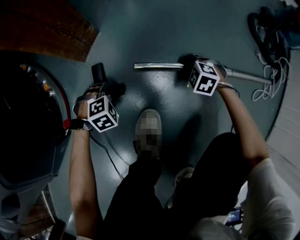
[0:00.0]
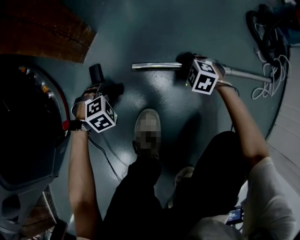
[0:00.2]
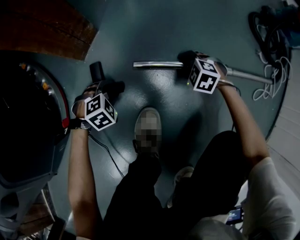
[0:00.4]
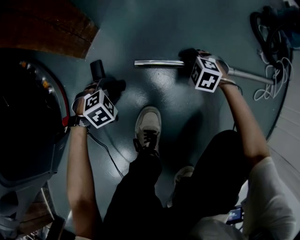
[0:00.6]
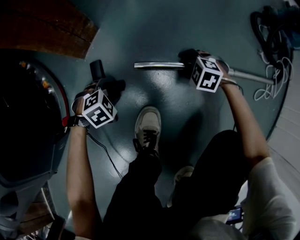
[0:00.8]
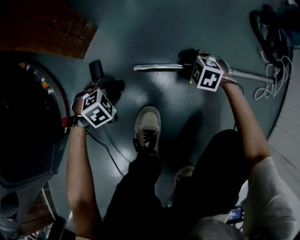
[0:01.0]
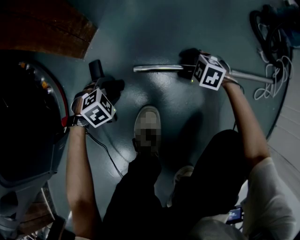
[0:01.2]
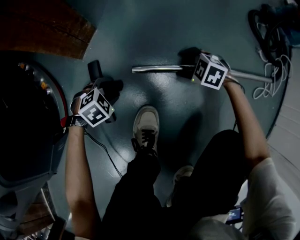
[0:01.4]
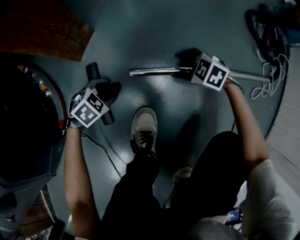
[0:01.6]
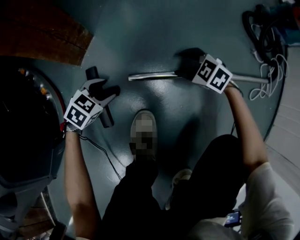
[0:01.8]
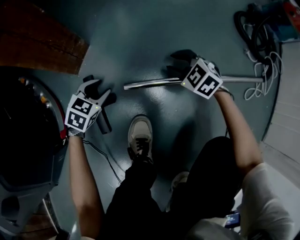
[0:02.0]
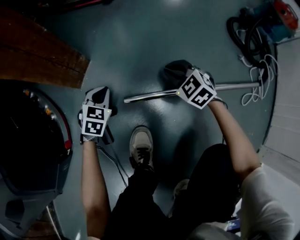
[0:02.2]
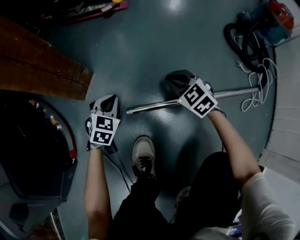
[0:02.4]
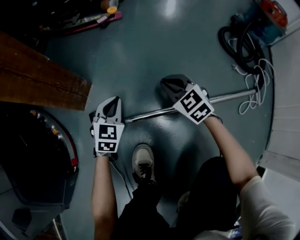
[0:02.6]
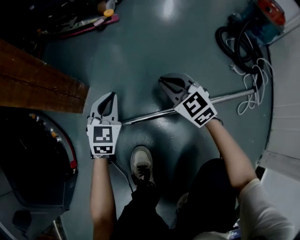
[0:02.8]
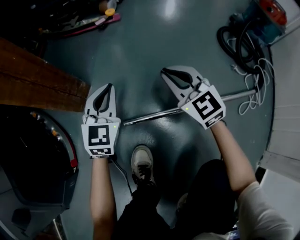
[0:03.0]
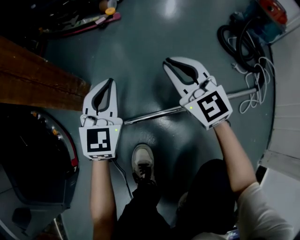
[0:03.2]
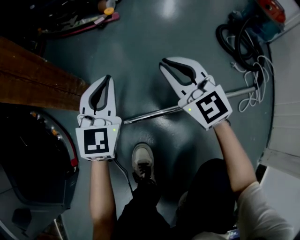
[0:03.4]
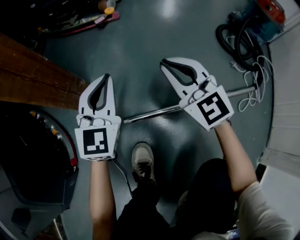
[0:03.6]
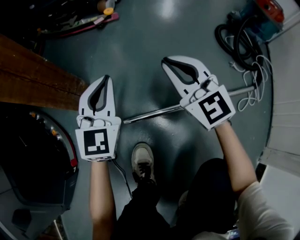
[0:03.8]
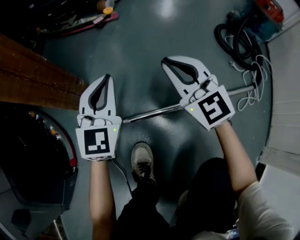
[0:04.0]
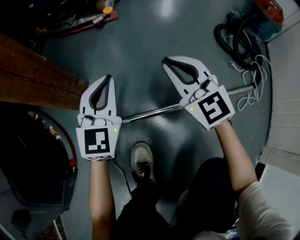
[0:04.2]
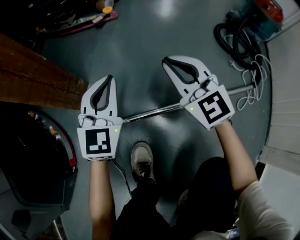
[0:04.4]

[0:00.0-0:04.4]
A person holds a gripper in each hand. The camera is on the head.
0:00.0 to 0:01.4: The right gripper opens up.
0:01.4 to 0:03.0: The two grippers go some 25 cm upward. The left gripper tilts its fingers about 50 degrees upward, and closes its fingers. Meanwhile the right gripper angles its fingers upward, by approximately 50 degrees, and closes up.
0:03.0 to 0:04.4: The grippers both shift upward by approximately 5 cm.

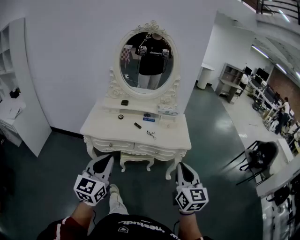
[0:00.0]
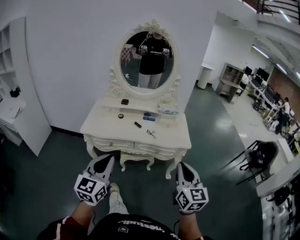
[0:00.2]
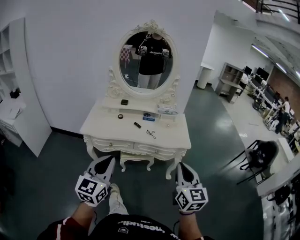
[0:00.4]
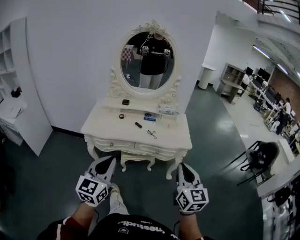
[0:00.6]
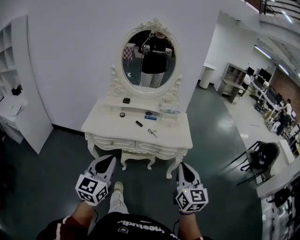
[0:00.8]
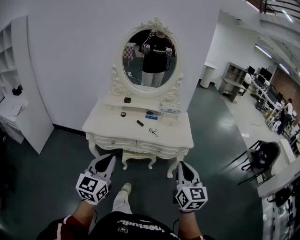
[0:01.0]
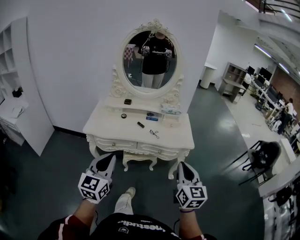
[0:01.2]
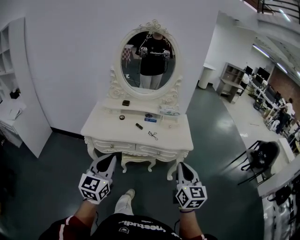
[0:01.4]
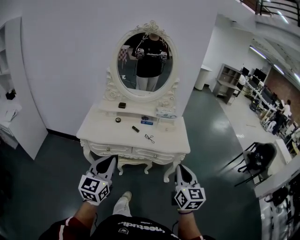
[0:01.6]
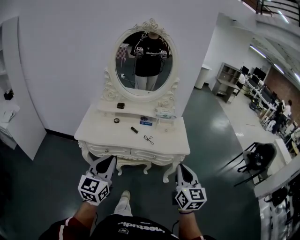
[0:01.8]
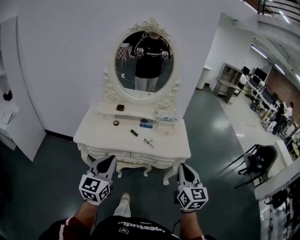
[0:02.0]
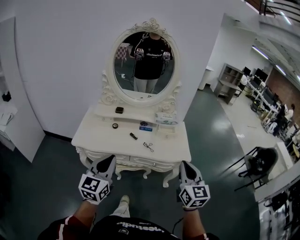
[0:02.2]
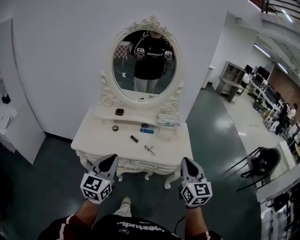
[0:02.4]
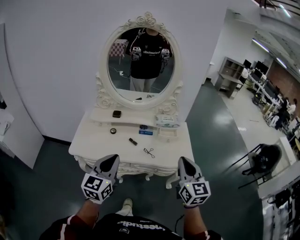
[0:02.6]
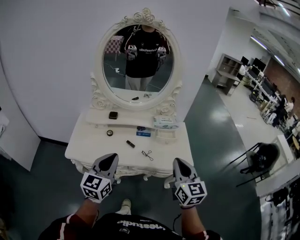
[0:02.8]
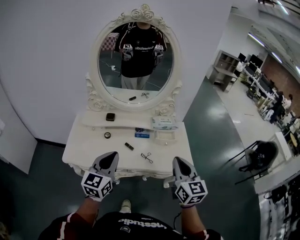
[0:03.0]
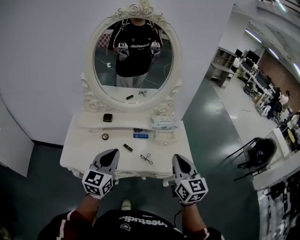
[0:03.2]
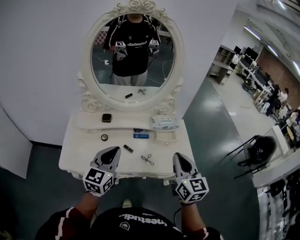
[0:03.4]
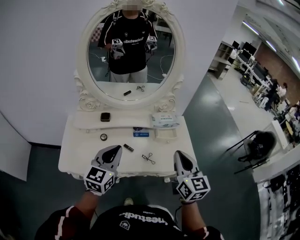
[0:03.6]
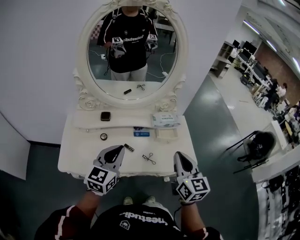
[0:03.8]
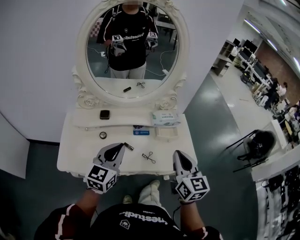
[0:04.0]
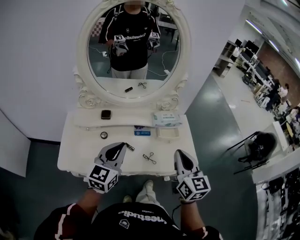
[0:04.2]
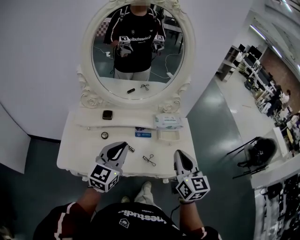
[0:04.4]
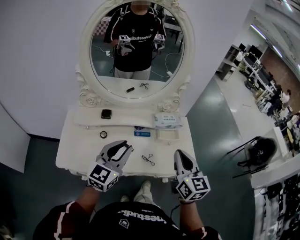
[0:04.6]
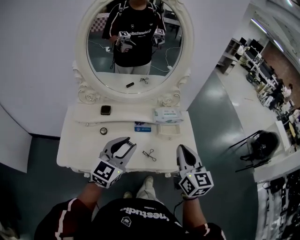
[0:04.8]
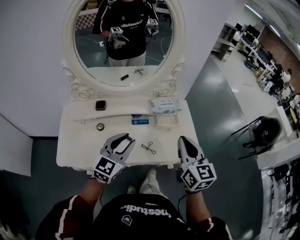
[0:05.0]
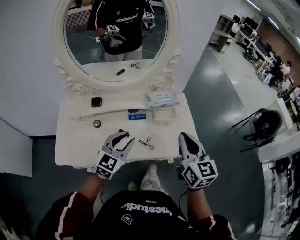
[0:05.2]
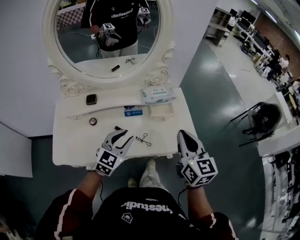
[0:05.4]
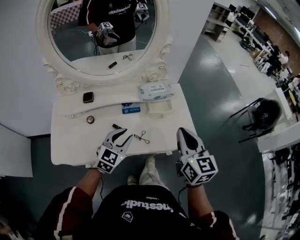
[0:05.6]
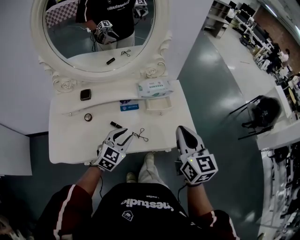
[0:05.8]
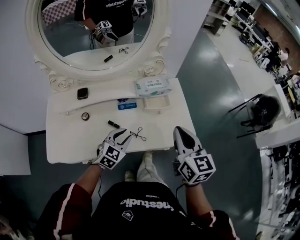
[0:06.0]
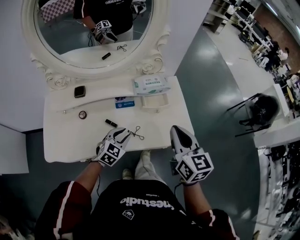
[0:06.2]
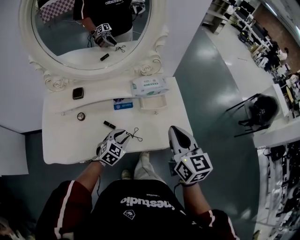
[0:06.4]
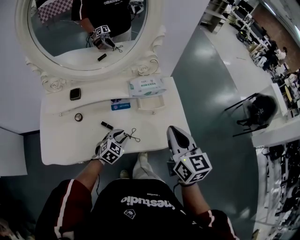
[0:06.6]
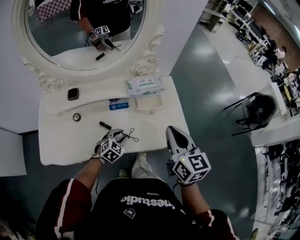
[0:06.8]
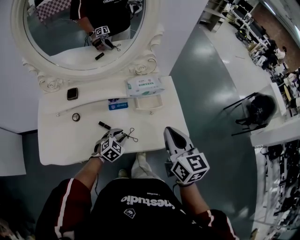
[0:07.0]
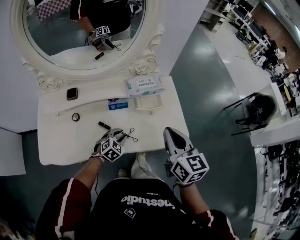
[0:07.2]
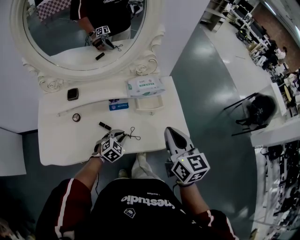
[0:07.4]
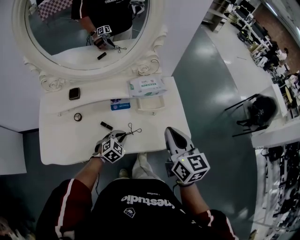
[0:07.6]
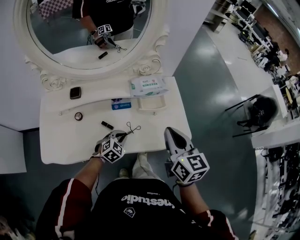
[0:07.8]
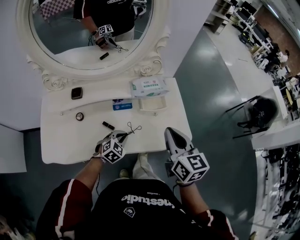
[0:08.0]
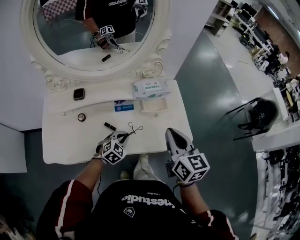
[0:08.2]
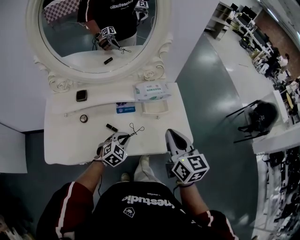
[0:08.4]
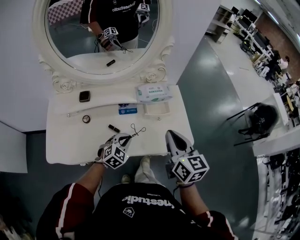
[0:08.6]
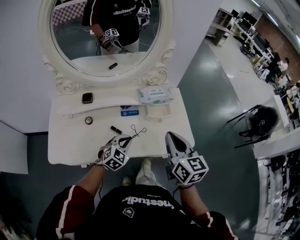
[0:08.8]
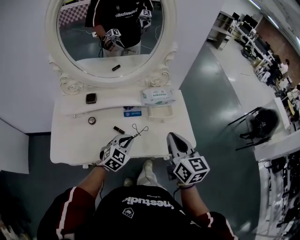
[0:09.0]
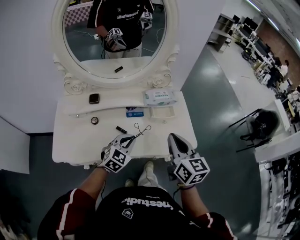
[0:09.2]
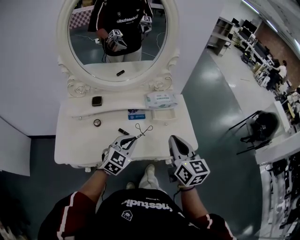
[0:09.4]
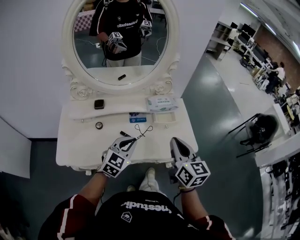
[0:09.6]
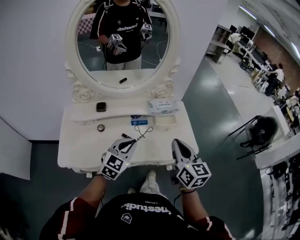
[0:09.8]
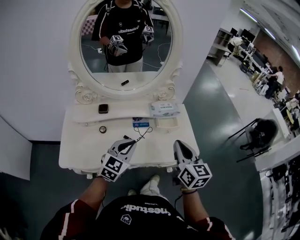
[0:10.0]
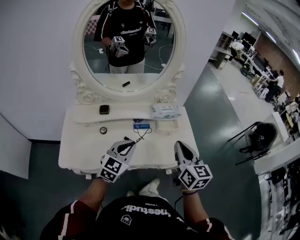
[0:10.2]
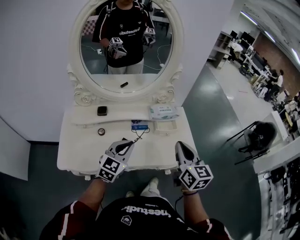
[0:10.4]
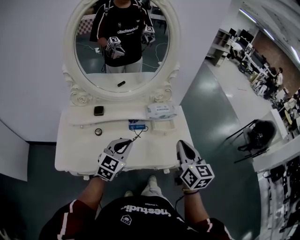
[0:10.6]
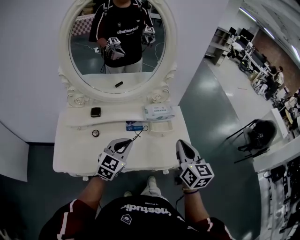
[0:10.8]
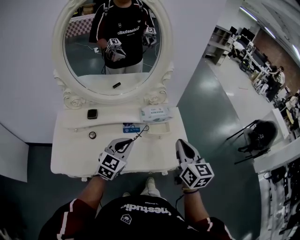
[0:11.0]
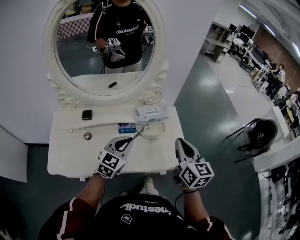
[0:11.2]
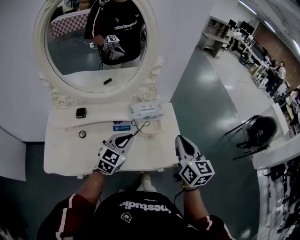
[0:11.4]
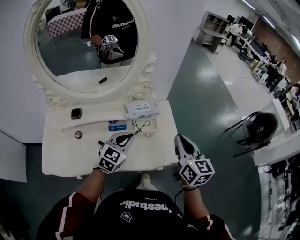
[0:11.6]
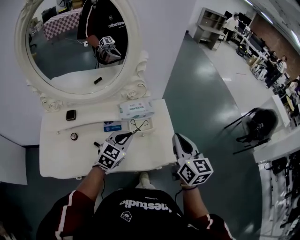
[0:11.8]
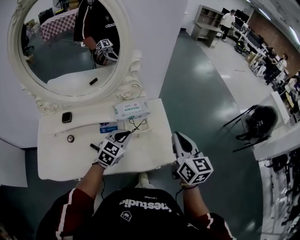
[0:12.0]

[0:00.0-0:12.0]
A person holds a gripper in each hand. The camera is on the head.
0:00.0 to 0:01.6: The right gripper shifts by about 5 cm; the left gripper shifts some 5 cm forward.
0:01.6 to 0:03.0: The grippers both shift forward by approximately 25 cm.
0:03.0 to 0:04.4: Both grippers travel together forward, some 10 cm.
0:04.4 to 0:06.0: The left gripper is displaced downward and to the right by roughly 25 cm, changes its angle by some 30 degrees, and opens its fingers. The right gripper moves to the right and downward, about 10 cm.
0:06.0 to 0:07.6: The left gripper moves downward, roughly 10 cm, and closes its fingers.
0:07.6 to 0:09.0: The left gripper goes about 10 cm upward.
0:09.0 to 0:10.4: The left gripper travels upward by about 15 cm.
0:10.4 to 0:12.0: The right gripper is displaced to the right and forward by approximately 20 cm; the left gripper moves forward, to the right and downward, about 25 cm.

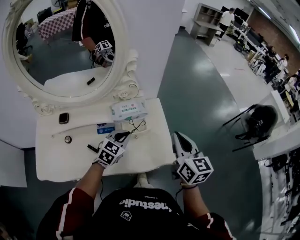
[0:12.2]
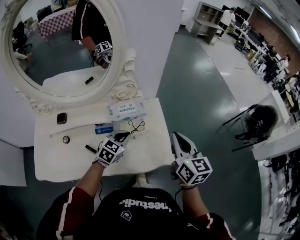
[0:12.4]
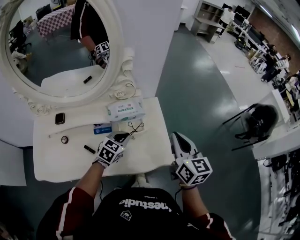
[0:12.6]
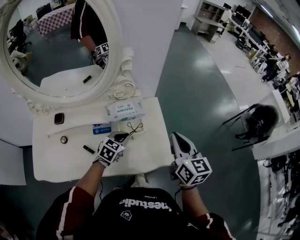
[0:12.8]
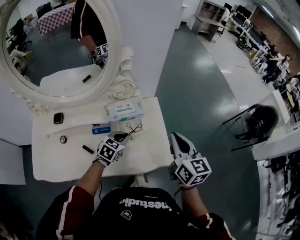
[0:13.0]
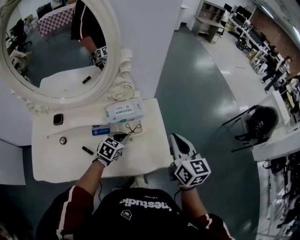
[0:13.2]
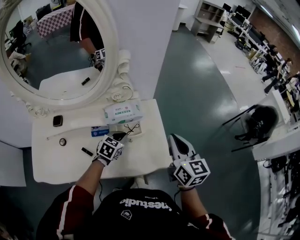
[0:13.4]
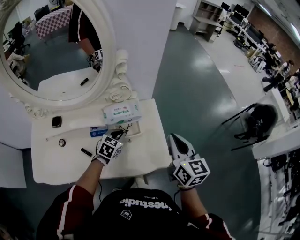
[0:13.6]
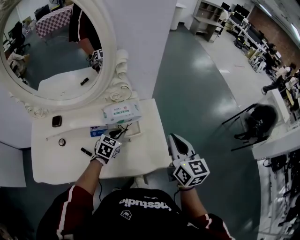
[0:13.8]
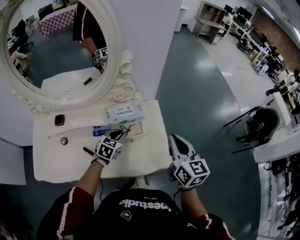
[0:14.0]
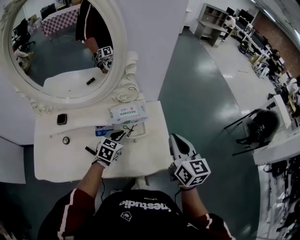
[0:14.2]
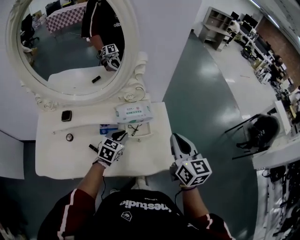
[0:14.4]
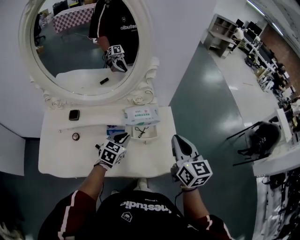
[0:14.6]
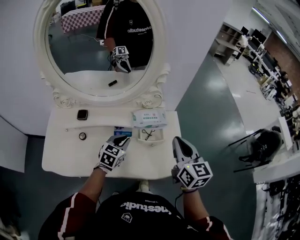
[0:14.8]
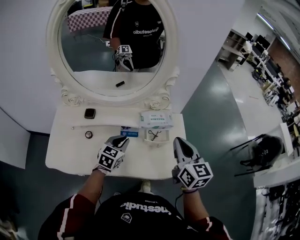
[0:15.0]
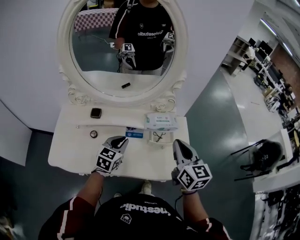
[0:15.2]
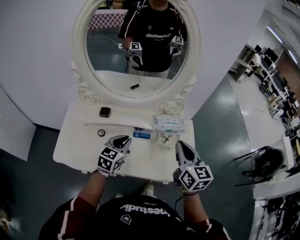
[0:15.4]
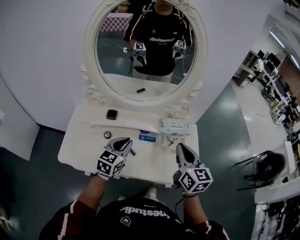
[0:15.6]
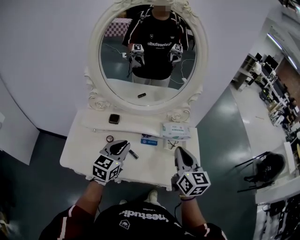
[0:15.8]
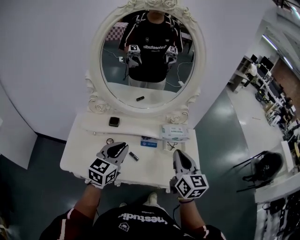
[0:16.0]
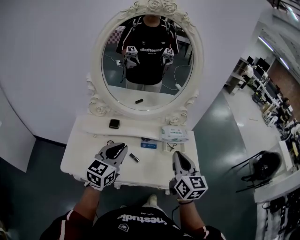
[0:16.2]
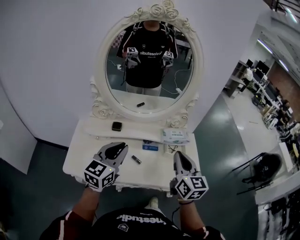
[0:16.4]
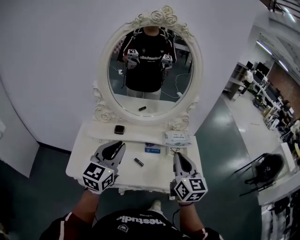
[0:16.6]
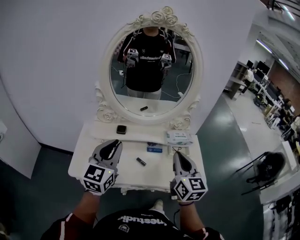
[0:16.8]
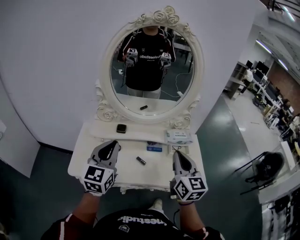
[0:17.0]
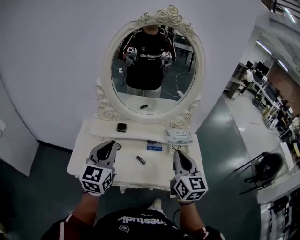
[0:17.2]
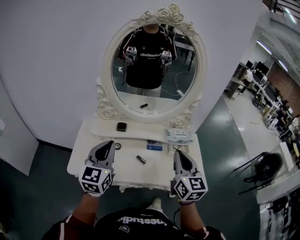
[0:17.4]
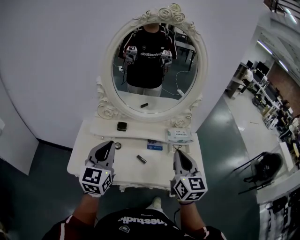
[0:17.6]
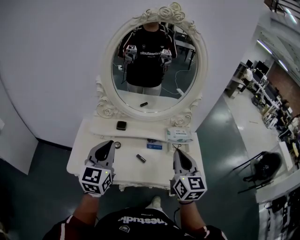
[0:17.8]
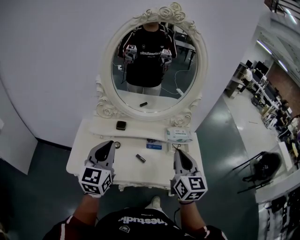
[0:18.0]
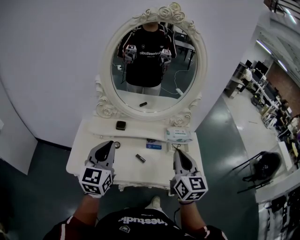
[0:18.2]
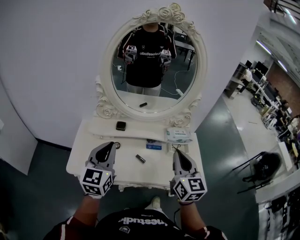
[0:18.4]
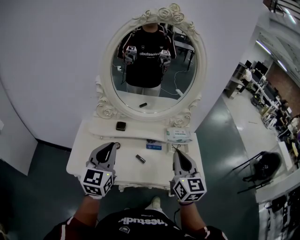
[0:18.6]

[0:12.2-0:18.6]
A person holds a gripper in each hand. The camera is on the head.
0:12.2 to 0:13.8: The left gripper shifts roughly 5 cm downward.
0:13.8 to 0:15.4: The right gripper shifts approximately 20 cm to the left. The left gripper is displaced to the left, upward and backward by roughly 25 cm, and changes its angle by about 20 degrees.
0:15.4 to 0:17.0: The right gripper heads to the left, backward and upward, covering approximately 15 cm. Meanwhile the left gripper moves upward, to the left and backward, approximately 25 cm, and swivels approximately 20 degrees.
0:17.0 to 0:18.6: There are only small adjustments of the grippers.

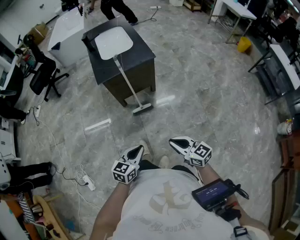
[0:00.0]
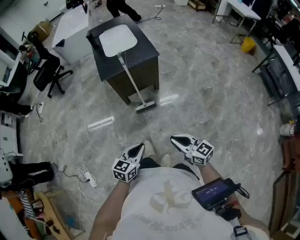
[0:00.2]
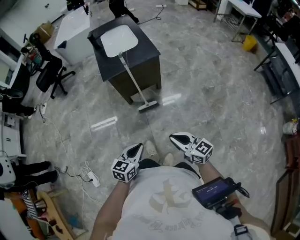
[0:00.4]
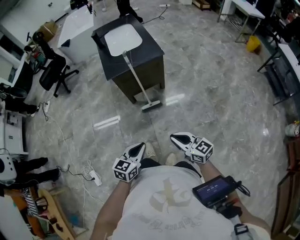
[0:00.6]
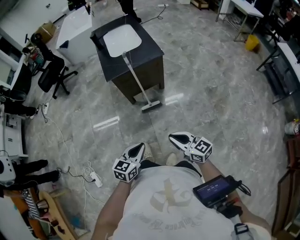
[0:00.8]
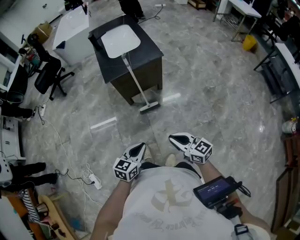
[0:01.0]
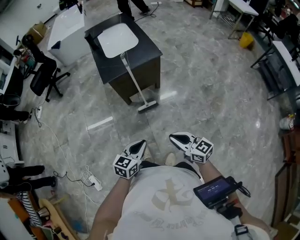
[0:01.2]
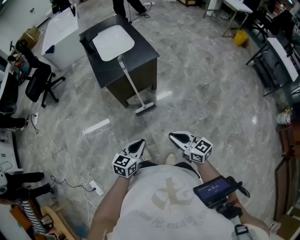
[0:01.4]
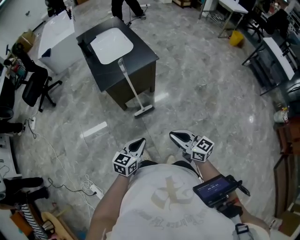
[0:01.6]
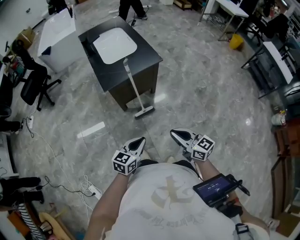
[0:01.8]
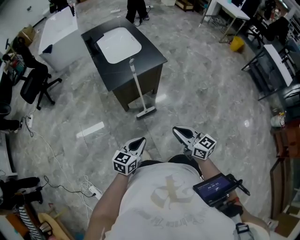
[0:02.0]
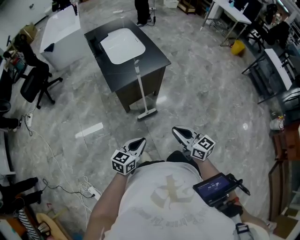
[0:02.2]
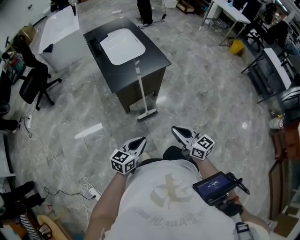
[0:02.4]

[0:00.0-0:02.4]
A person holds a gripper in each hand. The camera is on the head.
0:00.0 to 0:01.2: The right gripper ends up about 5 cm from where it was. The left gripper ends up roughly 5 cm from where it was.
0:01.2 to 0:02.4: The right gripper moves forward and to the left, approximately 15 cm. Meanwhile the left gripper heads to the left and forward, covering about 15 cm.
